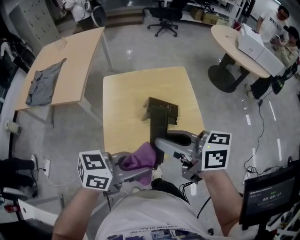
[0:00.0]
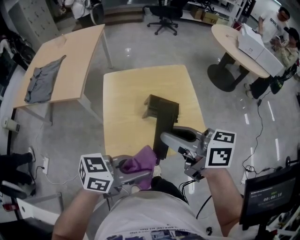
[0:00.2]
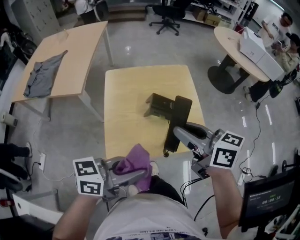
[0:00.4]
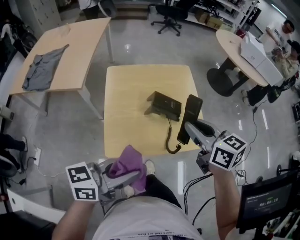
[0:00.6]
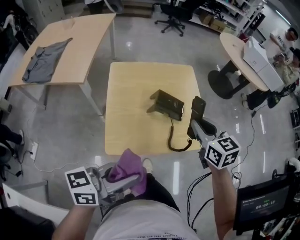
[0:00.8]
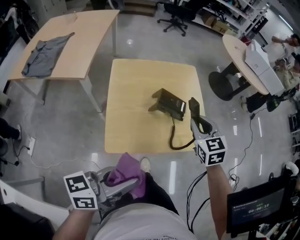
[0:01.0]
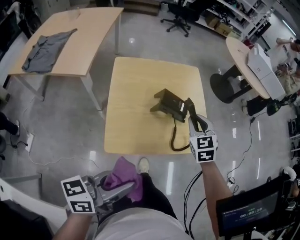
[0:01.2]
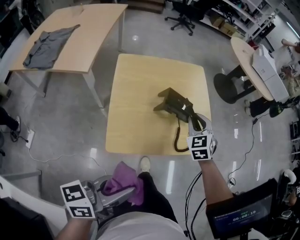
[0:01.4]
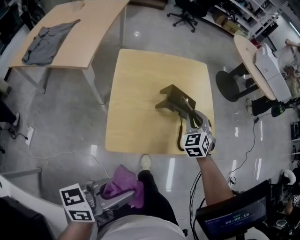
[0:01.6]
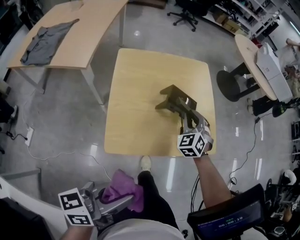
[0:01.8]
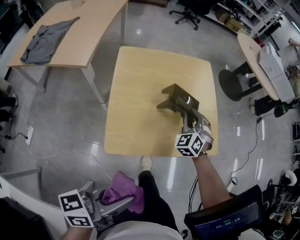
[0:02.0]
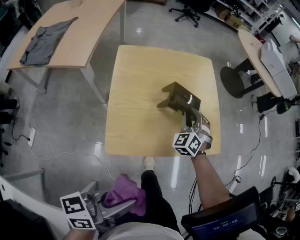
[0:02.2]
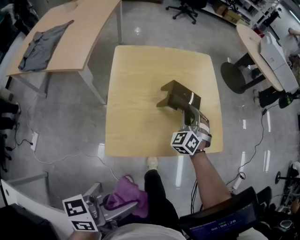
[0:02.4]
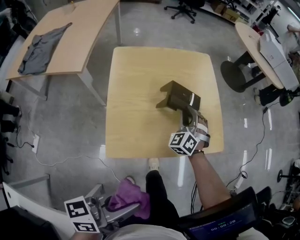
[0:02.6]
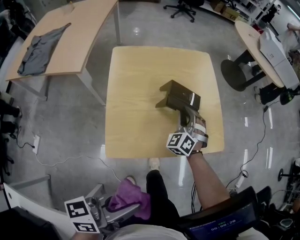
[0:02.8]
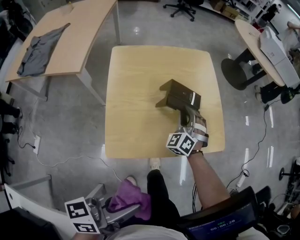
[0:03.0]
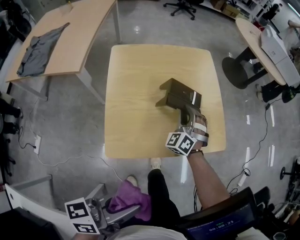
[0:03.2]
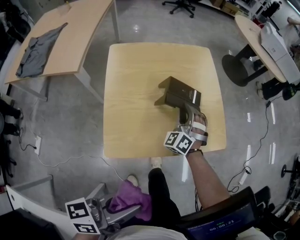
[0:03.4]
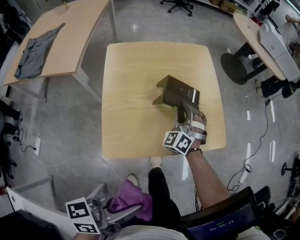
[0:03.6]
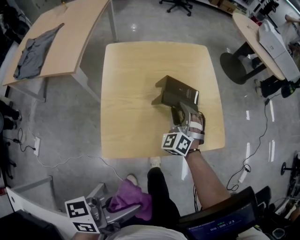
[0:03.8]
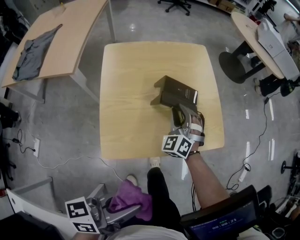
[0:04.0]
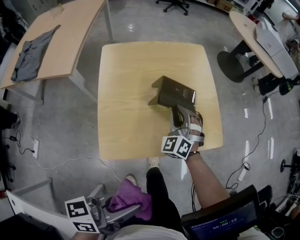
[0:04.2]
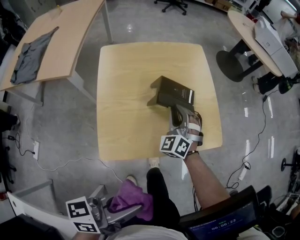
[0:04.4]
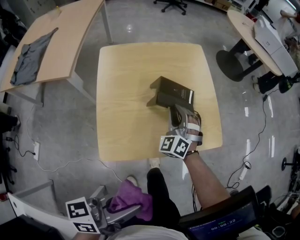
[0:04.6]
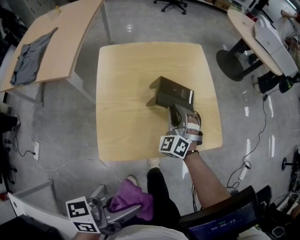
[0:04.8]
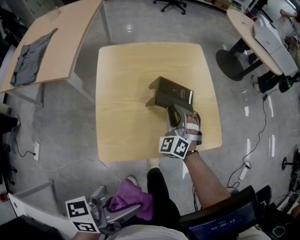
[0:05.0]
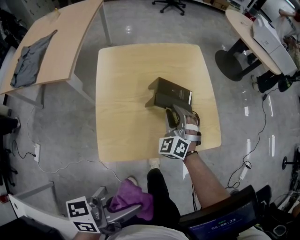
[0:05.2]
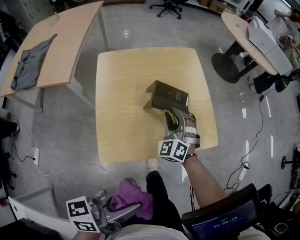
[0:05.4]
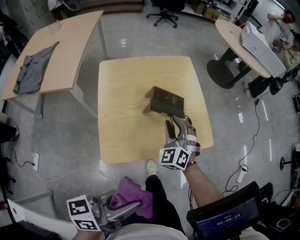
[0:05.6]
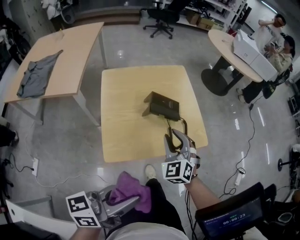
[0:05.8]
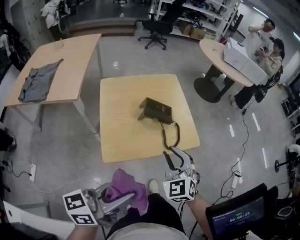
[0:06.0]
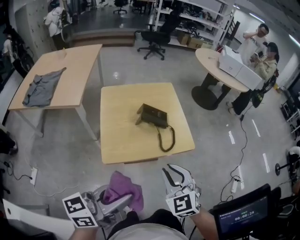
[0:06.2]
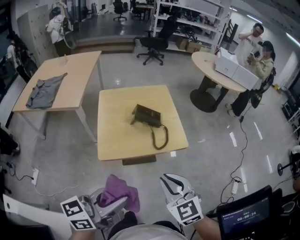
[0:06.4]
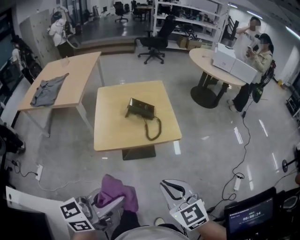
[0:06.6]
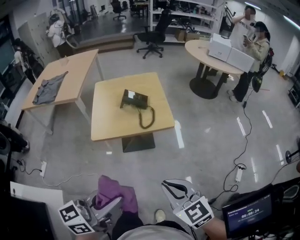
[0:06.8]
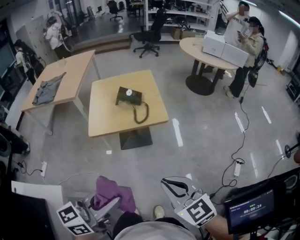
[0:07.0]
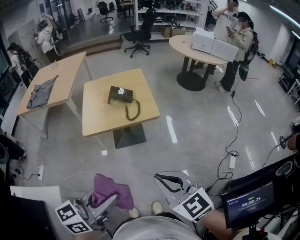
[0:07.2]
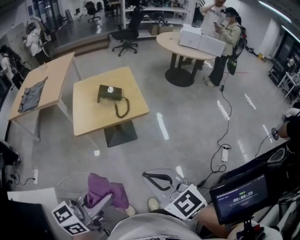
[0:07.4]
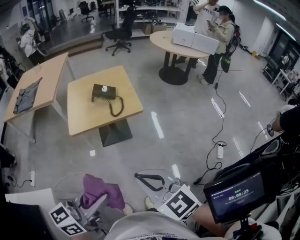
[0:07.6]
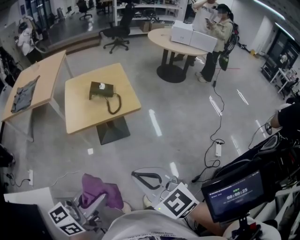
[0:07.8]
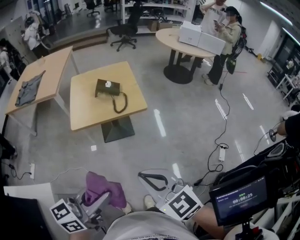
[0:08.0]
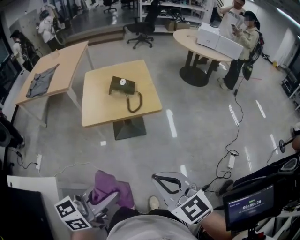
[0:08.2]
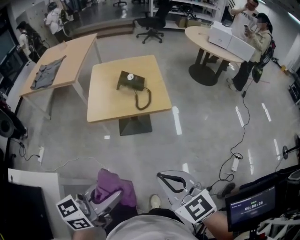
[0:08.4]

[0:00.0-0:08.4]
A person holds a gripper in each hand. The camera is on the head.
0:00.0 to 0:01.4: The right gripper heads downward, covering about 20 cm, and swivels about 80 degrees. The left gripper ends up roughly 10 cm from where it was, and swivels some 30 degrees.
0:01.4 to 0:02.8: The right gripper goes about 10 cm downward, and changes its angle by approximately 20 degrees.
0:02.8 to 0:04.2: The right gripper opens, then closes again.
0:04.2 to 0:05.6: The right gripper ends up about 5 cm from where it was.
0:05.6 to 0:07.0: The right gripper shifts some 50 cm backward, to the right and upward, turns by some 50 degrees, and closes up. Meanwhile the left gripper shifts some 25 cm backward, to the right and upward, and swivels approximately 30 degrees.

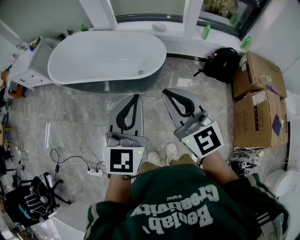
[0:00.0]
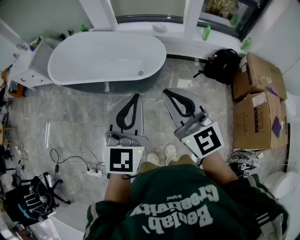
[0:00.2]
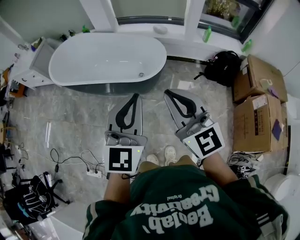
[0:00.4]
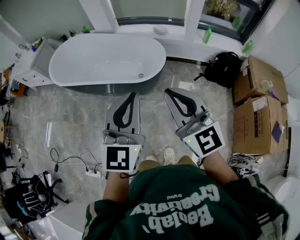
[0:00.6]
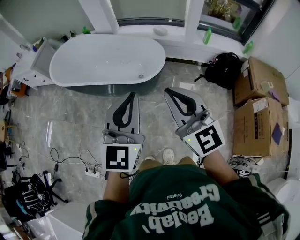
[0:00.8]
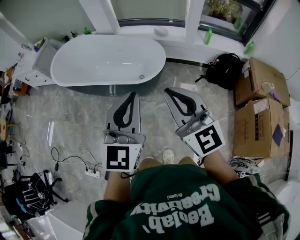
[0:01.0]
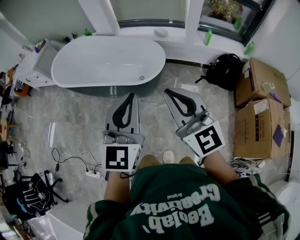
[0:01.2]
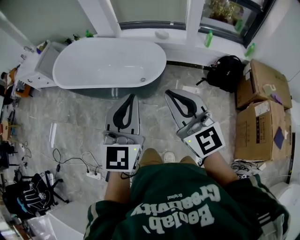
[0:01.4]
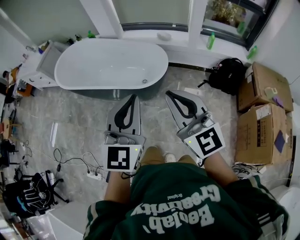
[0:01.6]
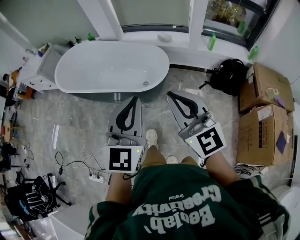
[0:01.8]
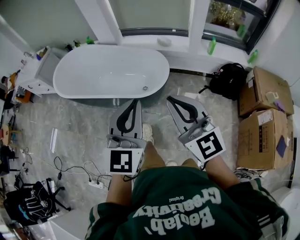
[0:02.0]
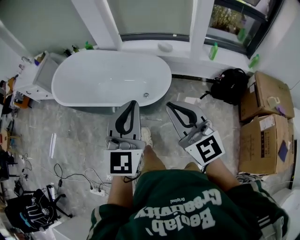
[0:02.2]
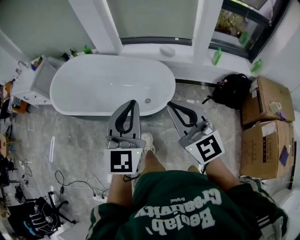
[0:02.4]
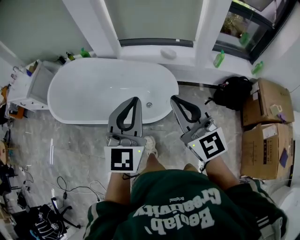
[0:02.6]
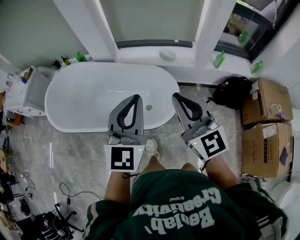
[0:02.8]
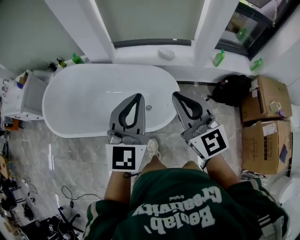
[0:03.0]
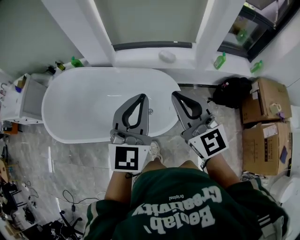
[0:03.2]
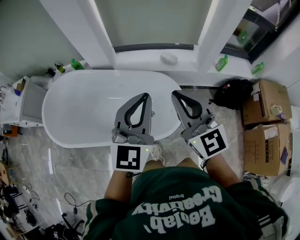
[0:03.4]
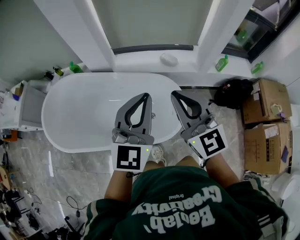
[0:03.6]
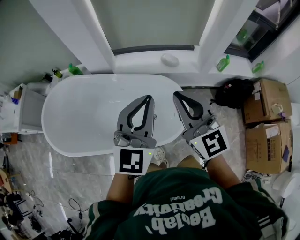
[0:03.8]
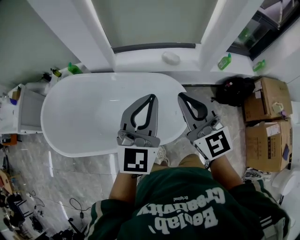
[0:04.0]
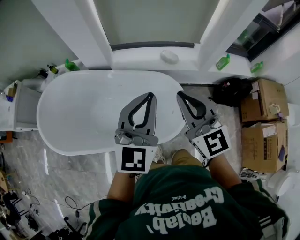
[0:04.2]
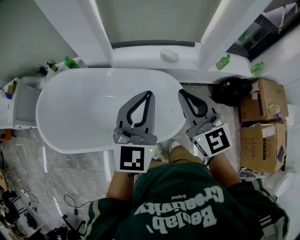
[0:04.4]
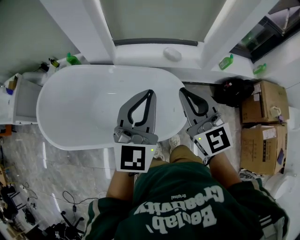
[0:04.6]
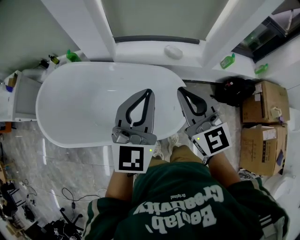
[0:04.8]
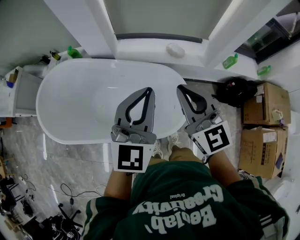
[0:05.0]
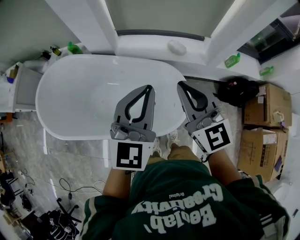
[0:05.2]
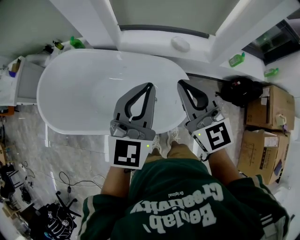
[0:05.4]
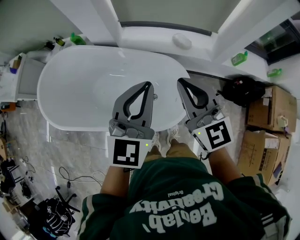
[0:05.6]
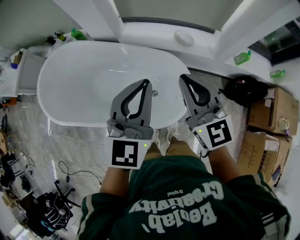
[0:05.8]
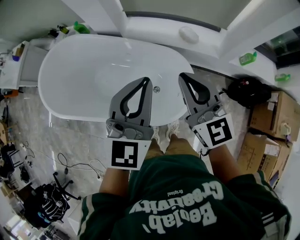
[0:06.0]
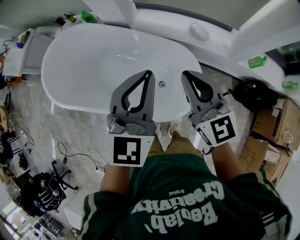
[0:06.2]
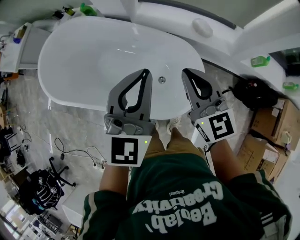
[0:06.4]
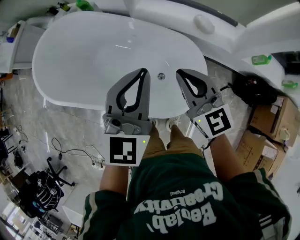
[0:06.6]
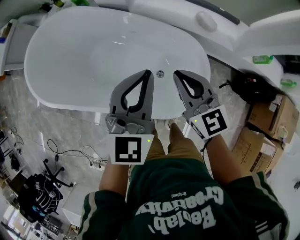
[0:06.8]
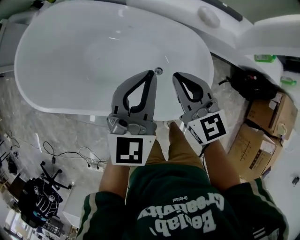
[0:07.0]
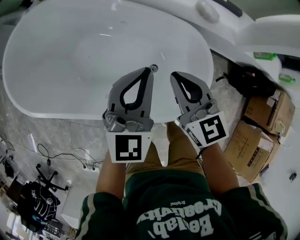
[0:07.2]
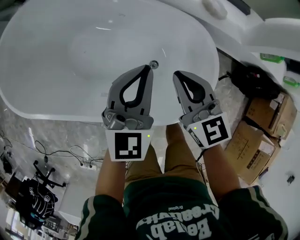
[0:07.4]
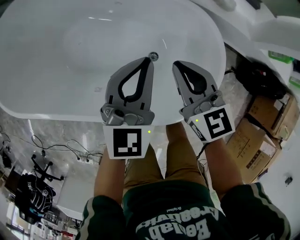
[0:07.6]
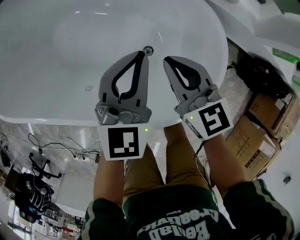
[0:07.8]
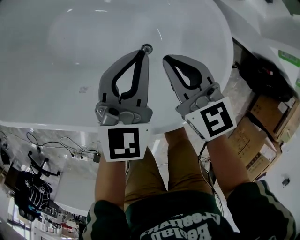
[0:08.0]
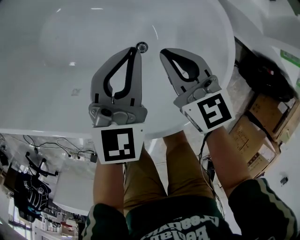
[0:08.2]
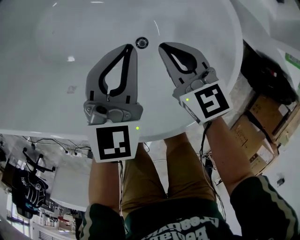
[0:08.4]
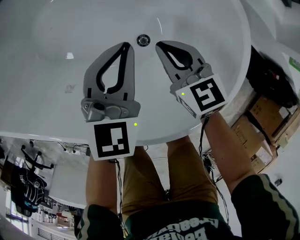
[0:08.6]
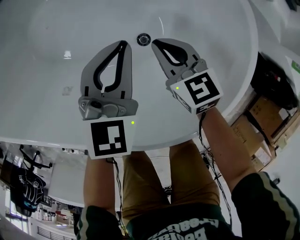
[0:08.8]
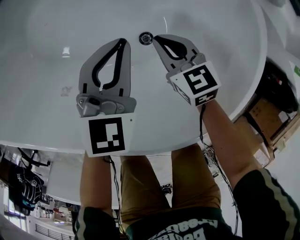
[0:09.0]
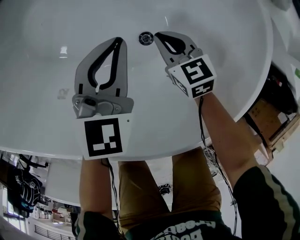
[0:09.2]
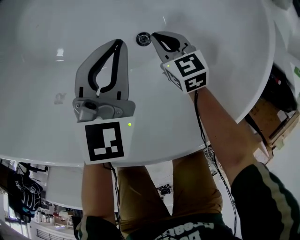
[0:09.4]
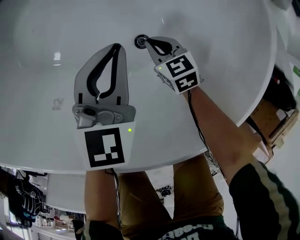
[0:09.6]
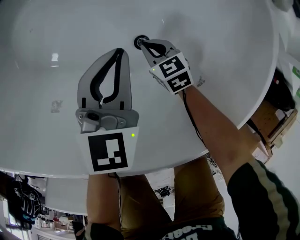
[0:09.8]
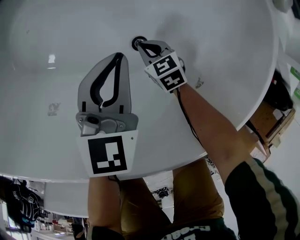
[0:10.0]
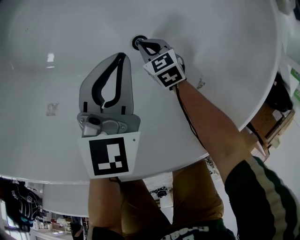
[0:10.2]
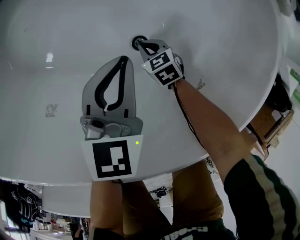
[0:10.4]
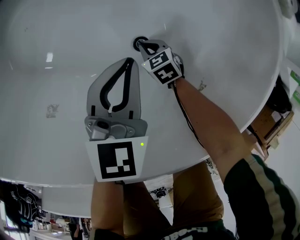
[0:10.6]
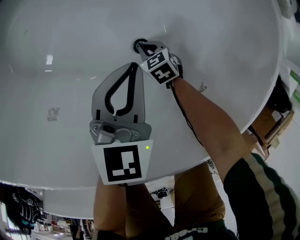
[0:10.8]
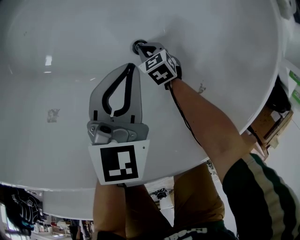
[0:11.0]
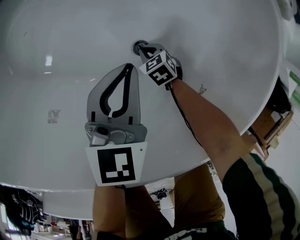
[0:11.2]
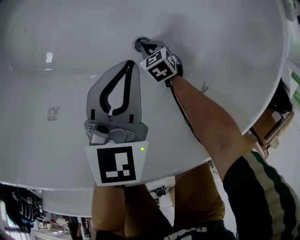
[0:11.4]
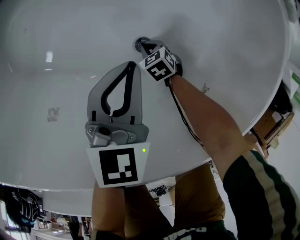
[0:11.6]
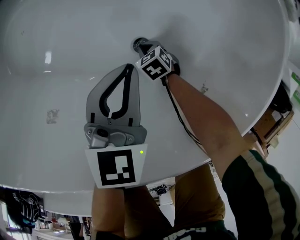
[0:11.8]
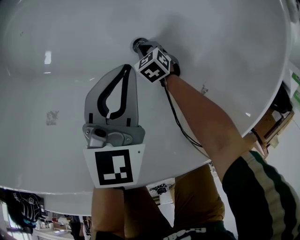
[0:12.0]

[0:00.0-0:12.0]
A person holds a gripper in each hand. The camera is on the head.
0:00.0 to 0:01.6: Both grippers move to the right, approximately 5 cm.
0:01.6 to 0:03.0: Both grippers move forward, approximately 40 cm.
0:03.0 to 0:04.4: The grippers both shift forward and to the left by about 15 cm.
0:04.4 to 0:06.0: The left gripper changes place by about 5 cm; the right gripper moves downward, approximately 5 cm.
0:06.0 to 0:07.6: The grippers both shift downward by about 35 cm. The right gripper swivels some 20 degrees.
0:07.6 to 0:09.0: The grippers both shift downward by about 30 cm. The right gripper changes its angle by some 20 degrees.
0:09.0 to 0:10.4: The right gripper moves downward, roughly 20 cm, and swivels roughly 20 degrees; the left gripper is displaced downward by approximately 5 cm.
0:10.4 to 0:12.0: The right gripper travels downward by approximately 5 cm.

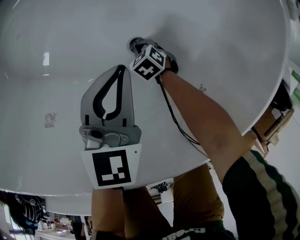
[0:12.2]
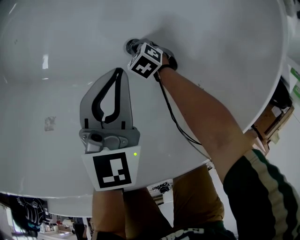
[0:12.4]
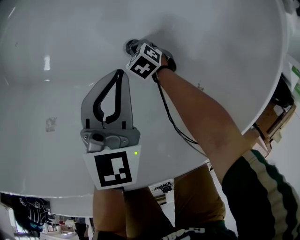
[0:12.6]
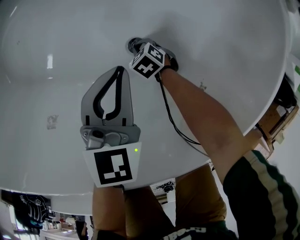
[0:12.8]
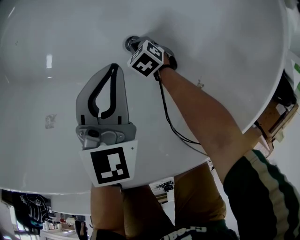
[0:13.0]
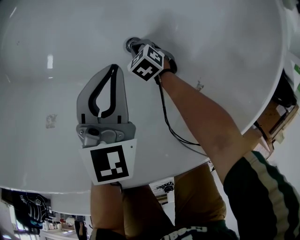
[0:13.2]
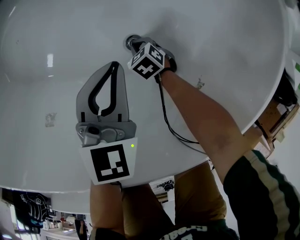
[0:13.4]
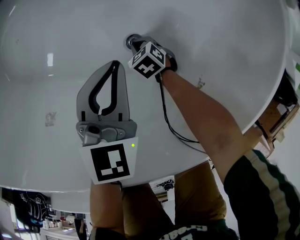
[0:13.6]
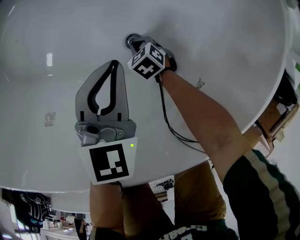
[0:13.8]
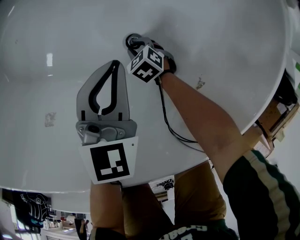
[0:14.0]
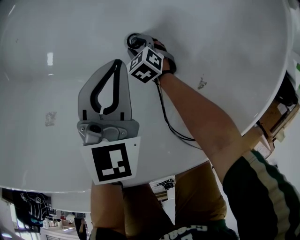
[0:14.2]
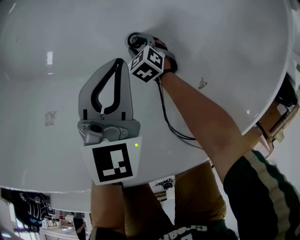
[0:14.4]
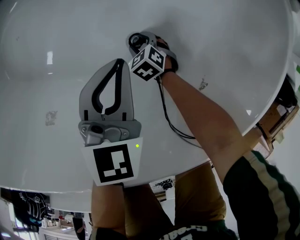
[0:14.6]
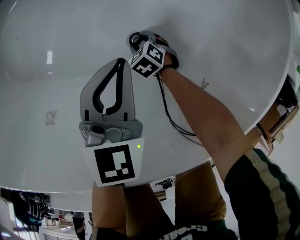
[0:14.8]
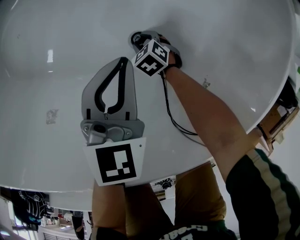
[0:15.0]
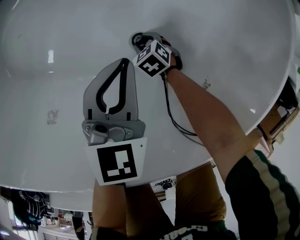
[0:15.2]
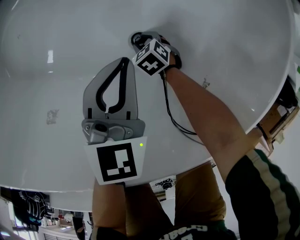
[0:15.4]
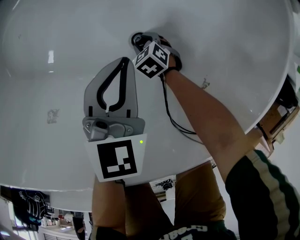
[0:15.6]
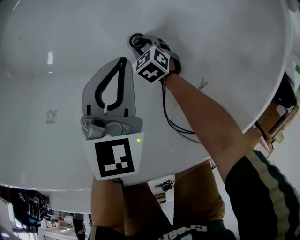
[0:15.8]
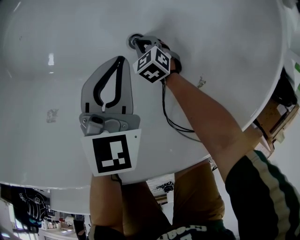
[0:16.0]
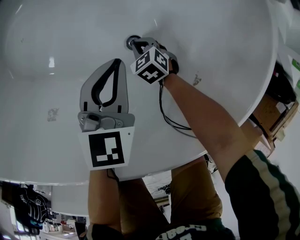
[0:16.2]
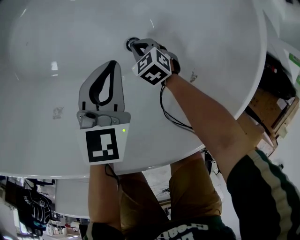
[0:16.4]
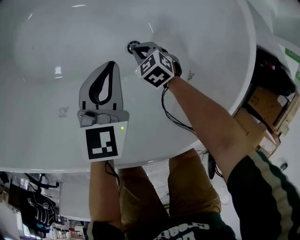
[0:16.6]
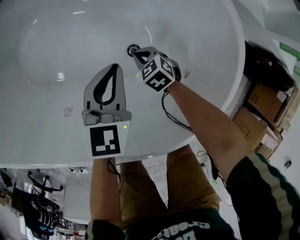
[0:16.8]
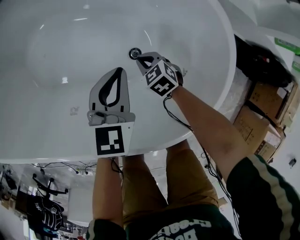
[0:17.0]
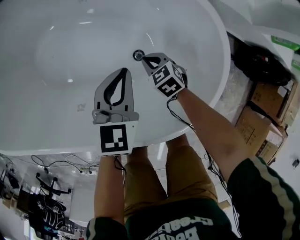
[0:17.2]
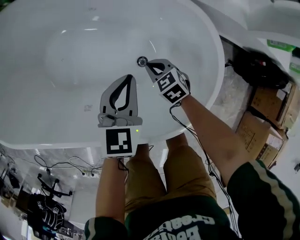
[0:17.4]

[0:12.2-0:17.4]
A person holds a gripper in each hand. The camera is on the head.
0:12.2 to 0:14.0: The right gripper opens its fingers.
0:14.0 to 0:15.6: The grippers stay close to where they were, moving slightly.
0:15.6 to 0:17.4: The right gripper is displaced upward by about 30 cm, swivels approximately 20 degrees, and closes up; the left gripper heads upward, covering approximately 20 cm.
